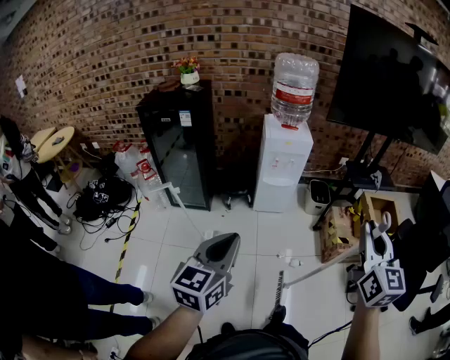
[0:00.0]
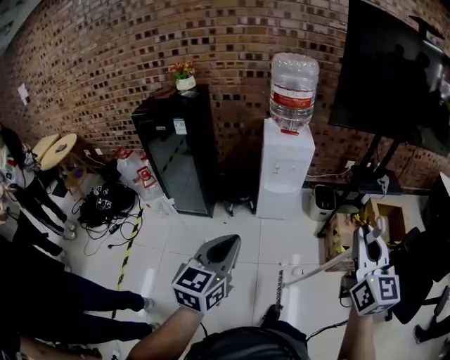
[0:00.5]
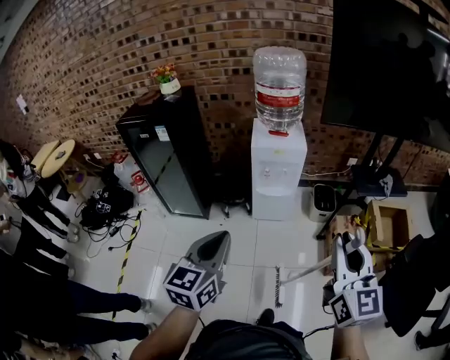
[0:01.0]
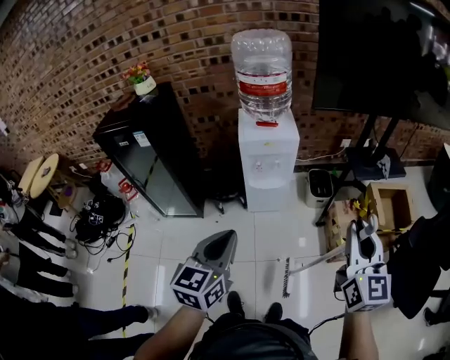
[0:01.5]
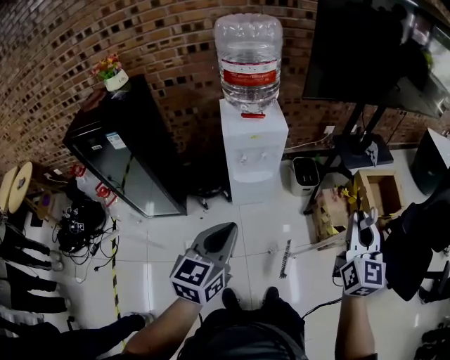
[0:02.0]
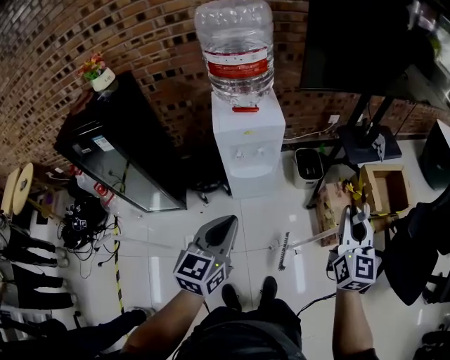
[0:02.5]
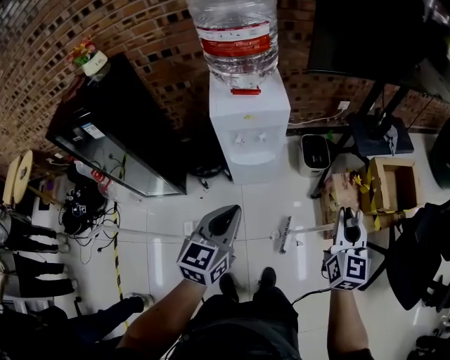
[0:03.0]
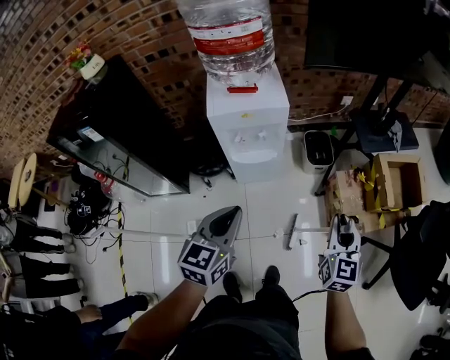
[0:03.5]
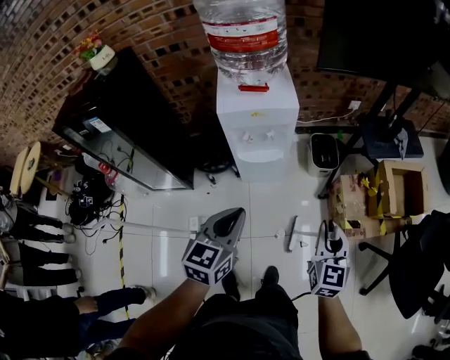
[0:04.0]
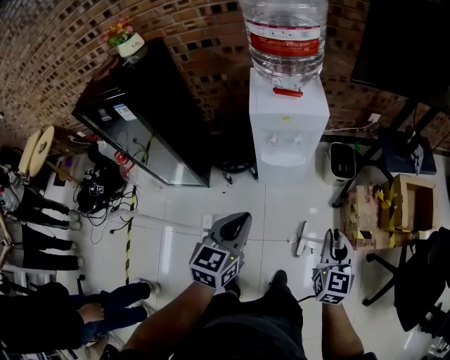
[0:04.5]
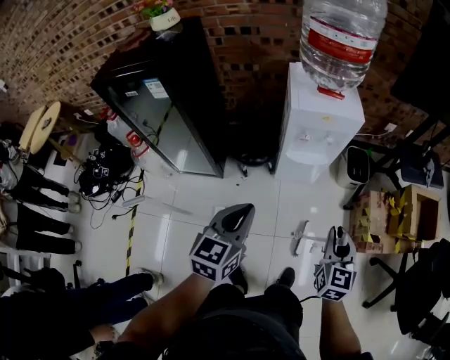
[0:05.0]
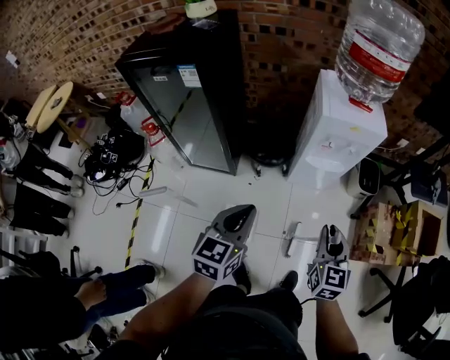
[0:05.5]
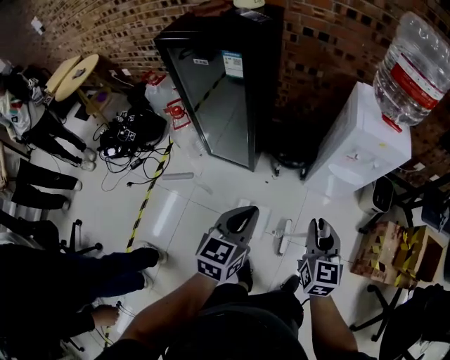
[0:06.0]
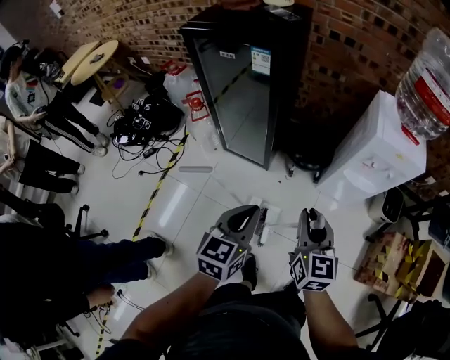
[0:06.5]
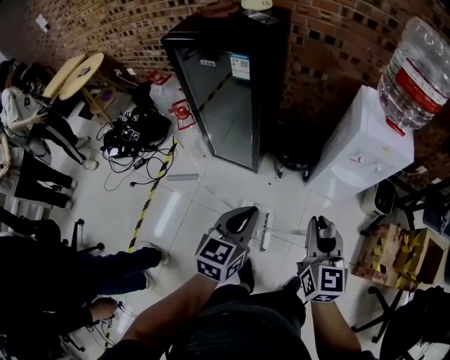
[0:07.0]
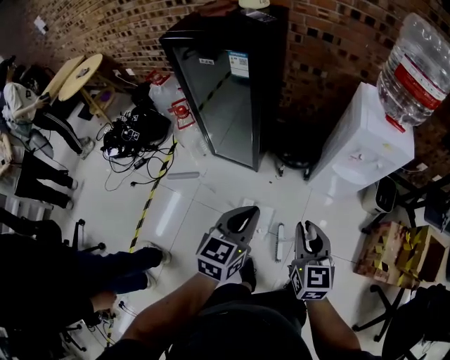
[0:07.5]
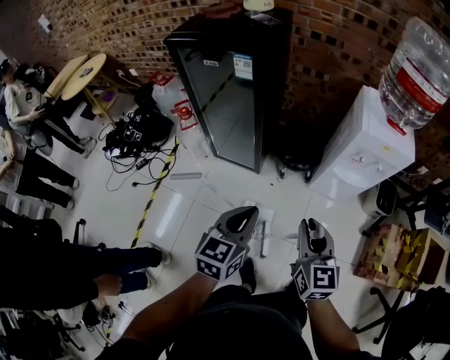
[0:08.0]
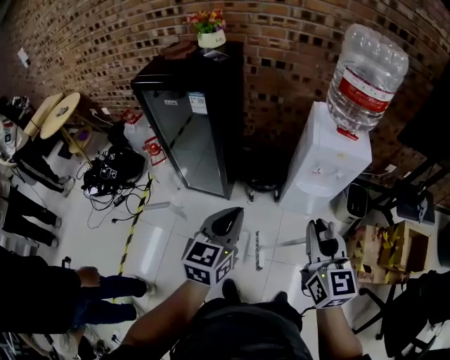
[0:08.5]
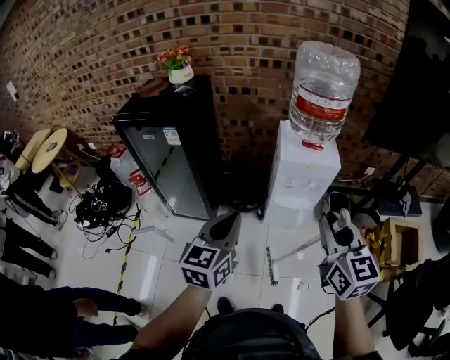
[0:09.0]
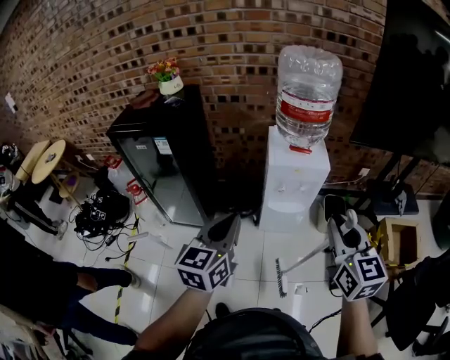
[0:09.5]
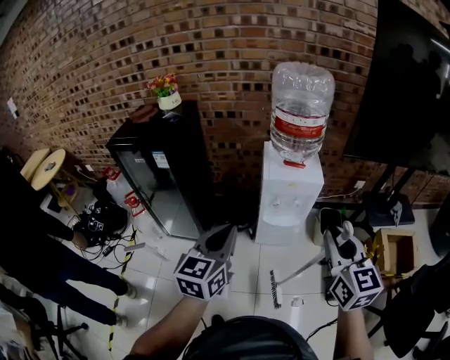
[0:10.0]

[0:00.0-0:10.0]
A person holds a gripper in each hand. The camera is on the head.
0:00.0 to 0:02.0: The grippers both shift forward by about 40 cm.
0:02.0 to 0:04.0: The left gripper goes roughly 20 cm forward and downward, while the right gripper moves downward and forward, roughly 30 cm.
0:04.0 to 0:06.0: Both grippers are carried to the left, some 50 cm. The right gripper turns by approximately 30 degrees.
0:06.0 to 0:08.0: The right gripper travels to the left by about 5 cm.
0:08.0 to 0:10.0: Both grippers move to the right and upward, roughly 40 cm.

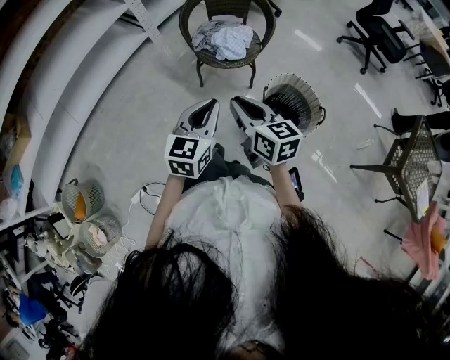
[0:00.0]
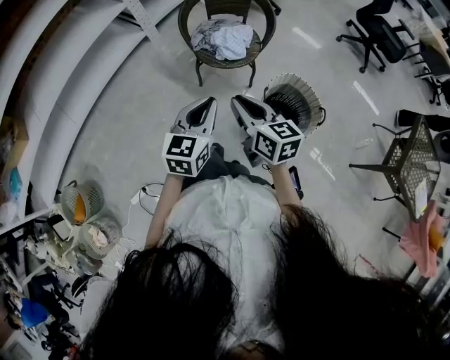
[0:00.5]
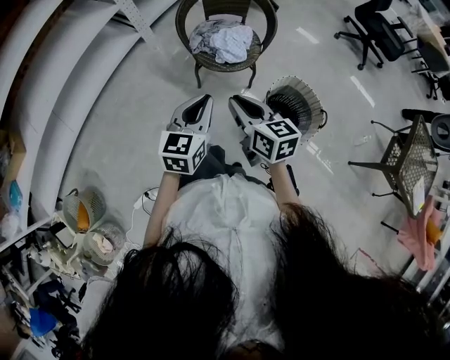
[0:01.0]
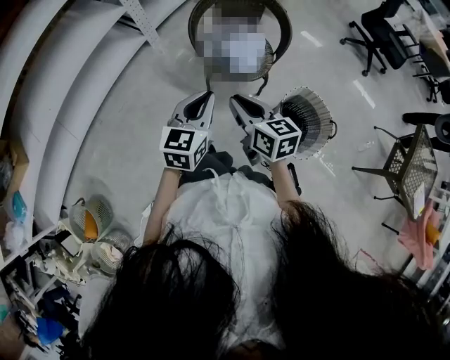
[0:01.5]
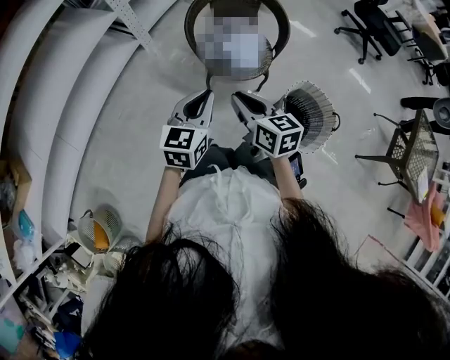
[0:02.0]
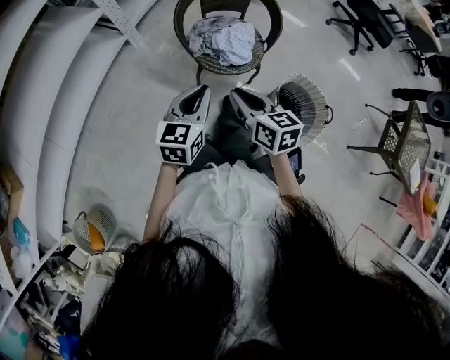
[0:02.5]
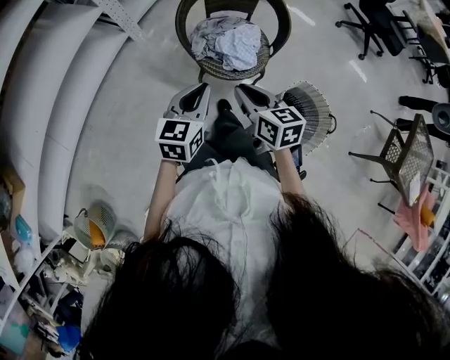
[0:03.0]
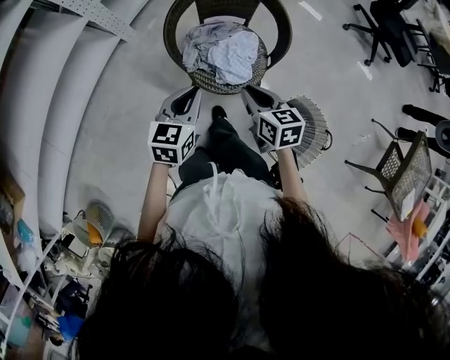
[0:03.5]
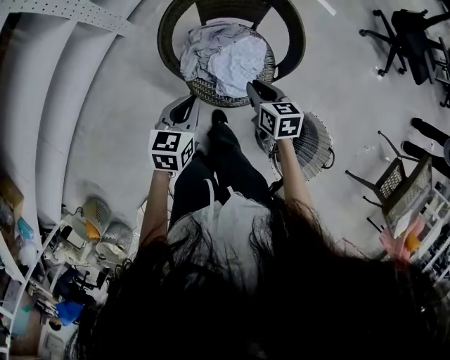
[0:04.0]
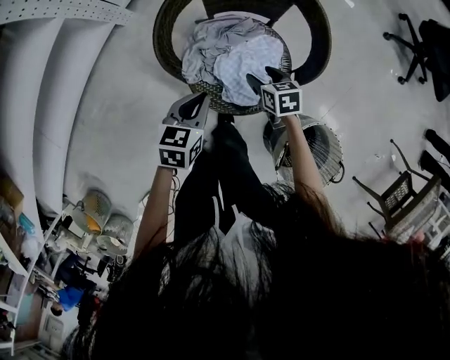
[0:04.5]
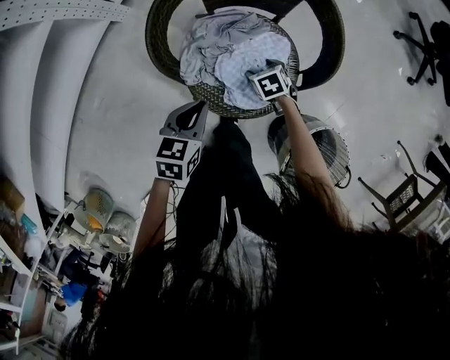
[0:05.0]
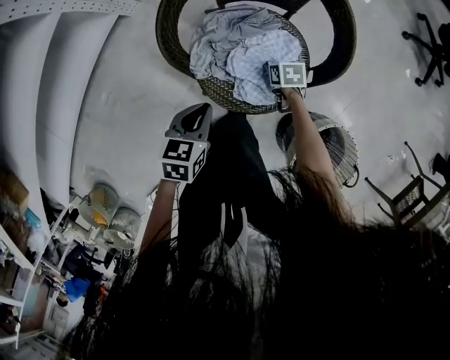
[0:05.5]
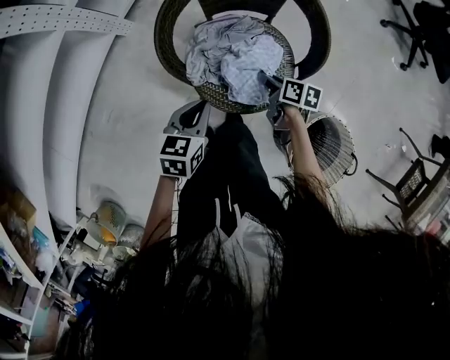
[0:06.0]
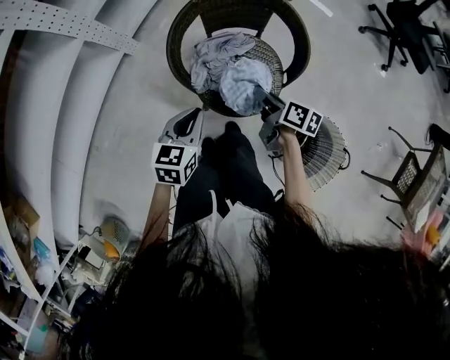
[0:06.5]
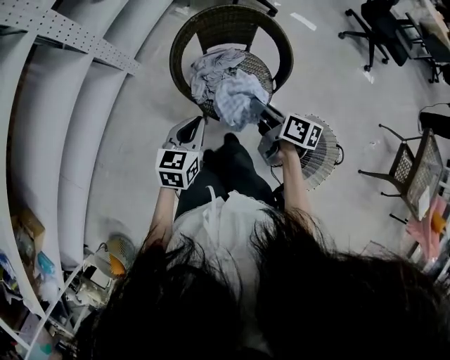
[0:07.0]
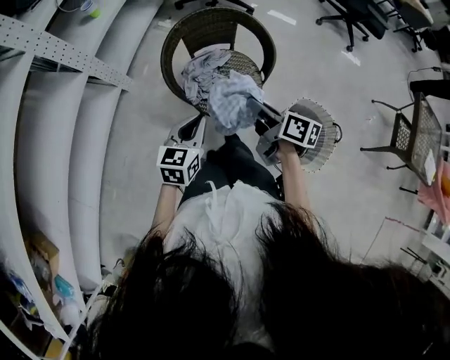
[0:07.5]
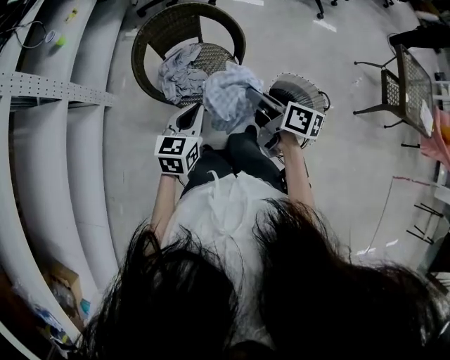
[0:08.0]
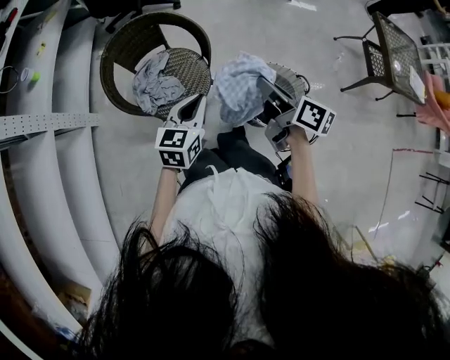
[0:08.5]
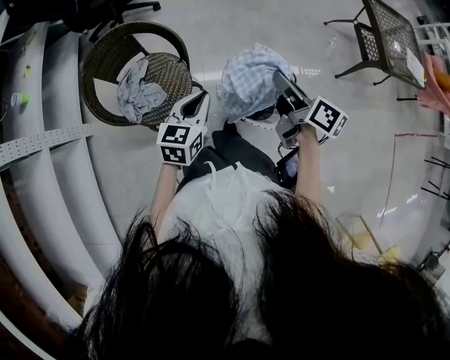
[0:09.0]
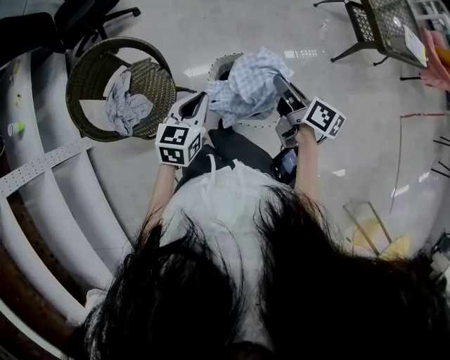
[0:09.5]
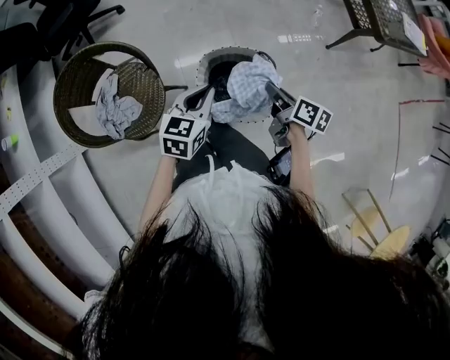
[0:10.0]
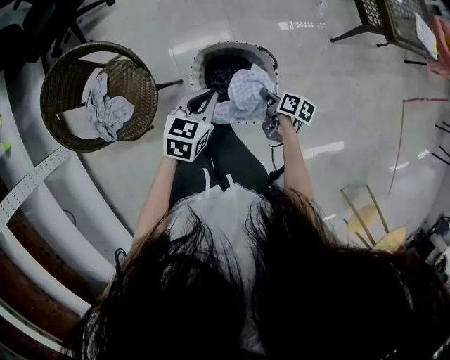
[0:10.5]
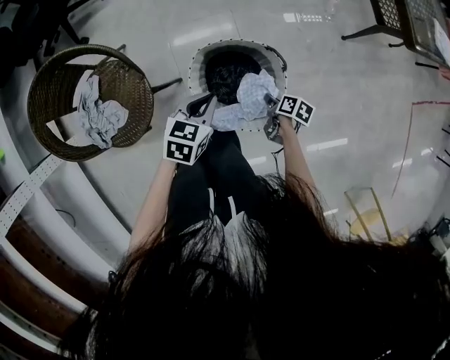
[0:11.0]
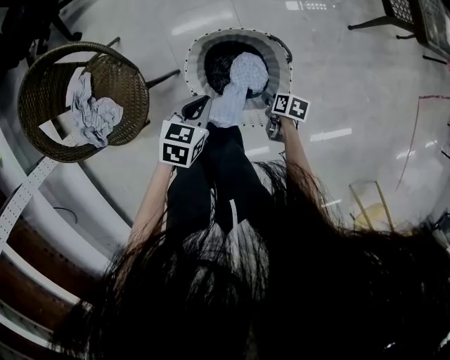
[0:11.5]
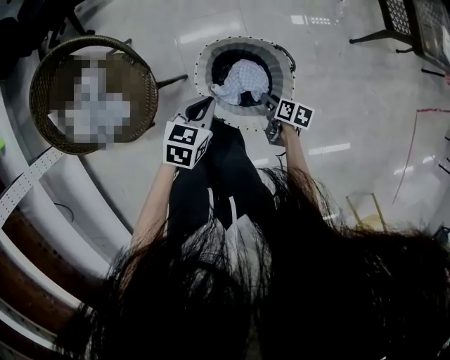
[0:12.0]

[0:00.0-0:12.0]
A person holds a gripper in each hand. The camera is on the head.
0:00.0 to 0:02.0: The grippers both shift forward and to the left by roughly 25 cm.
0:02.0 to 0:04.0: The left gripper goes some 30 cm forward and downward, and turns by about 20 degrees; the right gripper heads forward, downward and to the right, covering roughly 40 cm.
0:04.0 to 0:06.0: The right gripper travels downward by some 15 cm, changes its angle by some 30 degrees, and opens and closes again; the left gripper shifts roughly 10 cm downward.
0:06.0 to 0:08.0: The right gripper is displaced upward by approximately 35 cm, and rotates about 40 degrees. Meanwhile the left gripper goes approximately 20 cm upward, and swivels some 30 degrees.
0:08.0 to 0:10.0: The two grippers travel together, approximately 40 cm. The left gripper swivels roughly 30 degrees. The right gripper changes its angle by roughly 30 degrees.
0:10.0 to 0:12.0: The right gripper shifts roughly 30 cm downward, rotates about 30 degrees, and opens its fingers. Meanwhile the left gripper moves downward, some 20 cm.

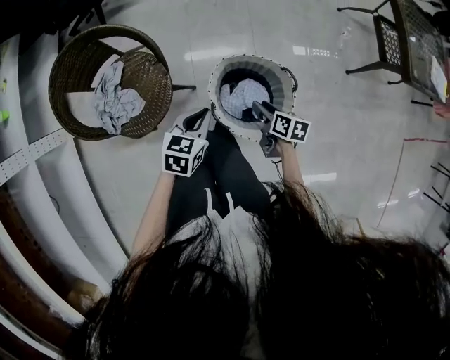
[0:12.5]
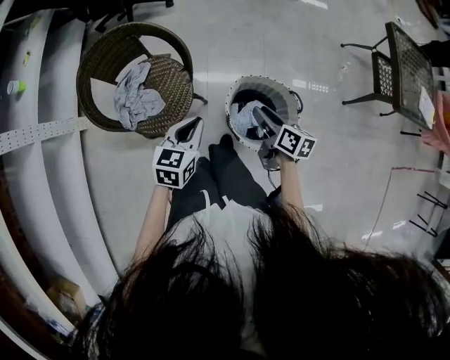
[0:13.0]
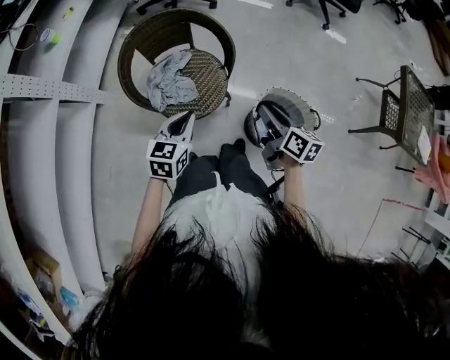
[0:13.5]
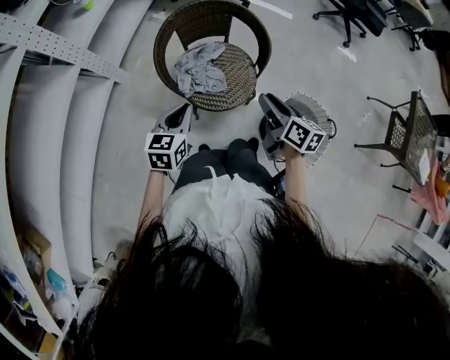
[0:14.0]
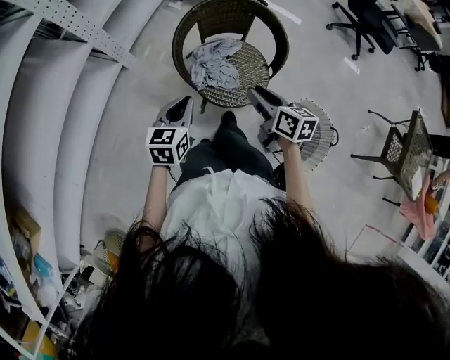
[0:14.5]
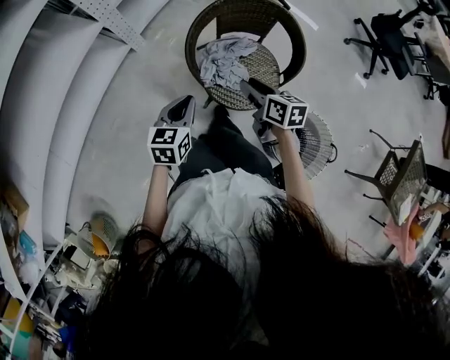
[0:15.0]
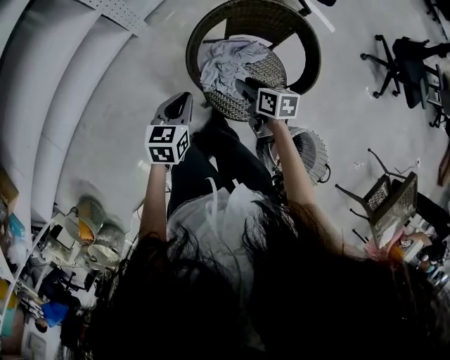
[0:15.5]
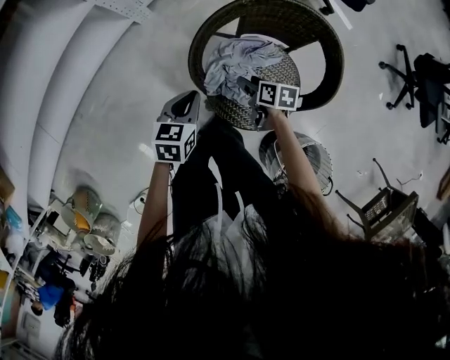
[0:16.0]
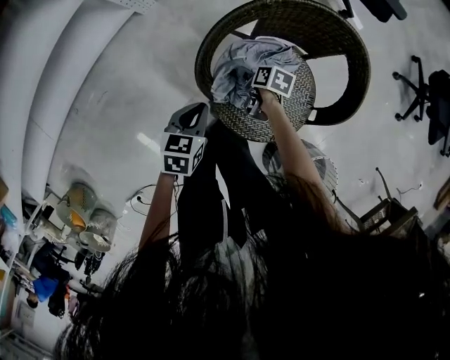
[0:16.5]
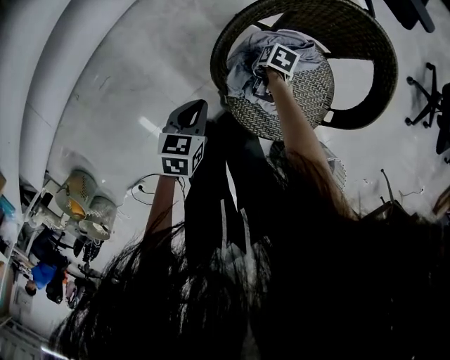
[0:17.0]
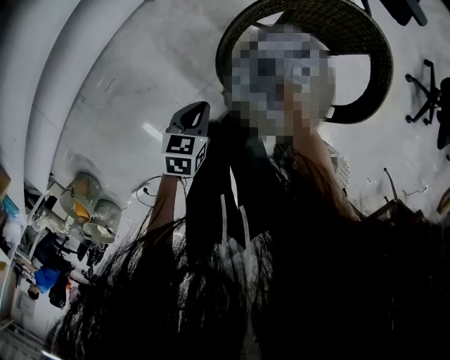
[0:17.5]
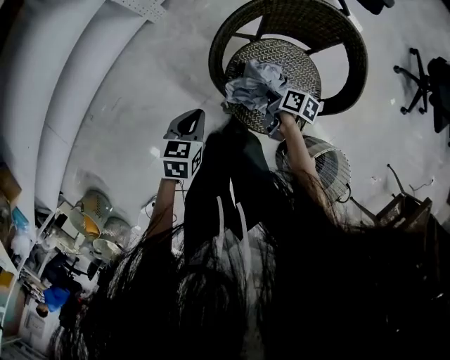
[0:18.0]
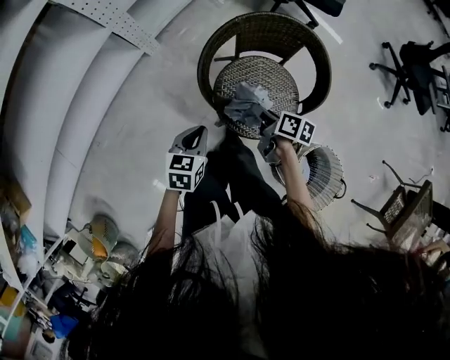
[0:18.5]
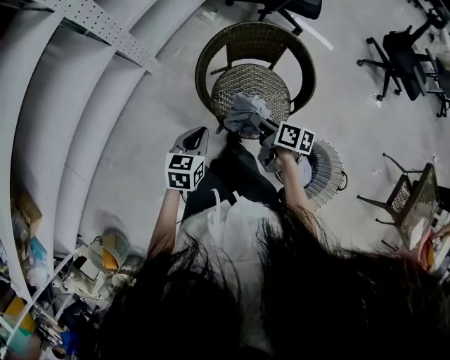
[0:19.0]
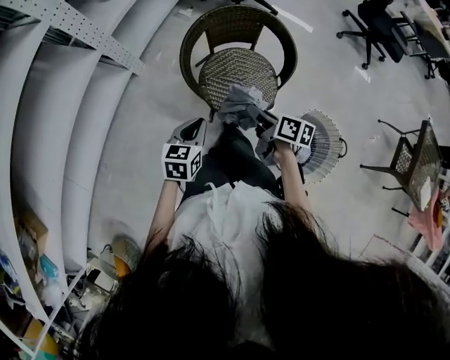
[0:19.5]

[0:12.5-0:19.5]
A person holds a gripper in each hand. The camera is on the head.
0:12.5 to 0:14.5: The two grippers travel together, about 50 cm. The right gripper swivels roughly 40 degrees. Meanwhile the left gripper swivels roughly 50 degrees.
0:14.5 to 0:16.0: The left gripper shifts approximately 20 cm downward and forward, and changes its angle by approximately 20 degrees. Meanwhile the right gripper goes approximately 35 cm downward and forward, and swivels about 40 degrees.
0:16.0 to 0:17.5: The left gripper travels downward by approximately 10 cm. The right gripper travels downward by about 15 cm, turns by approximately 20 degrees, and closes up.
0:17.5 to 0:19.5: The left gripper travels upward by approximately 20 cm, and turns by approximately 30 degrees. Meanwhile the right gripper is displaced upward by about 40 cm, and angles its fingers upward, by about 40 degrees.
